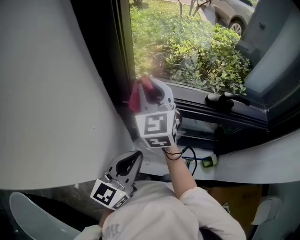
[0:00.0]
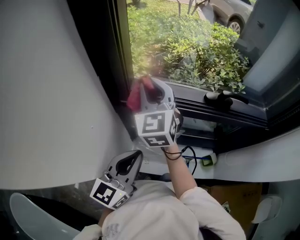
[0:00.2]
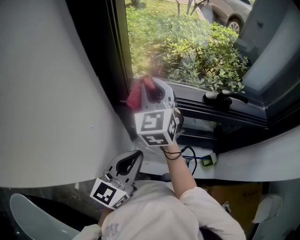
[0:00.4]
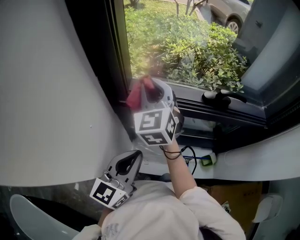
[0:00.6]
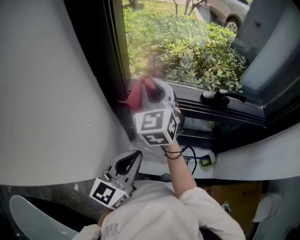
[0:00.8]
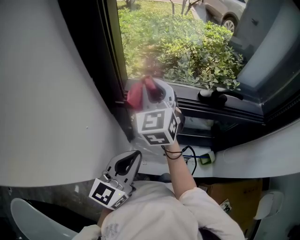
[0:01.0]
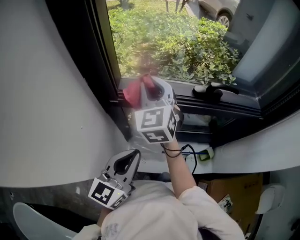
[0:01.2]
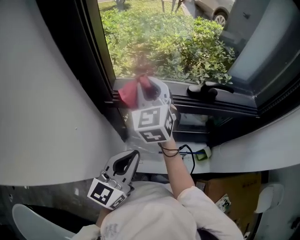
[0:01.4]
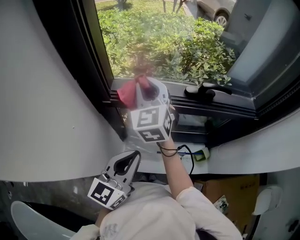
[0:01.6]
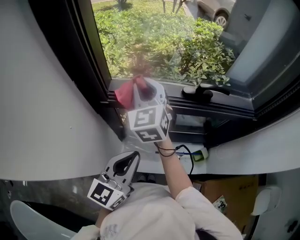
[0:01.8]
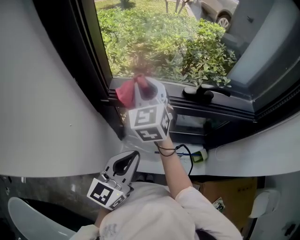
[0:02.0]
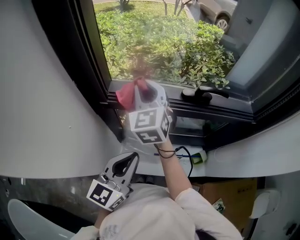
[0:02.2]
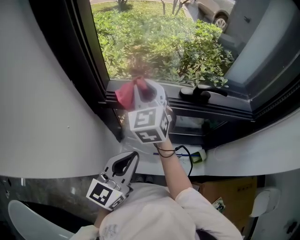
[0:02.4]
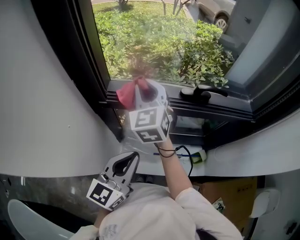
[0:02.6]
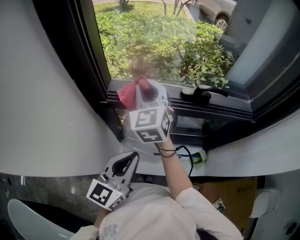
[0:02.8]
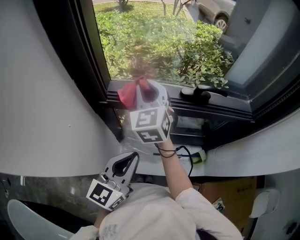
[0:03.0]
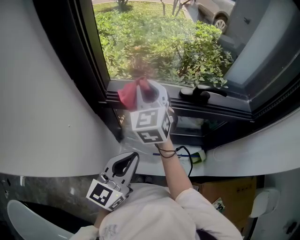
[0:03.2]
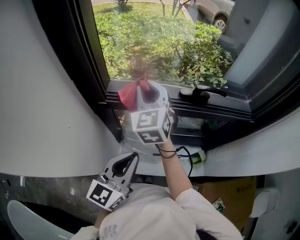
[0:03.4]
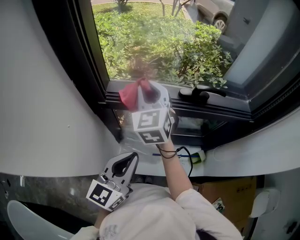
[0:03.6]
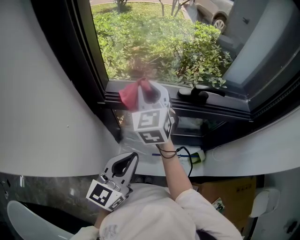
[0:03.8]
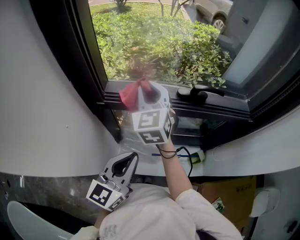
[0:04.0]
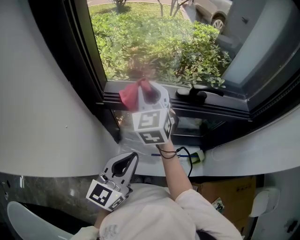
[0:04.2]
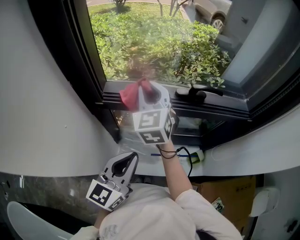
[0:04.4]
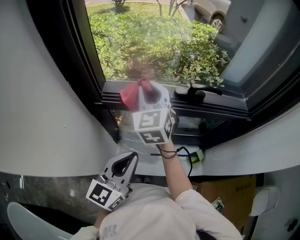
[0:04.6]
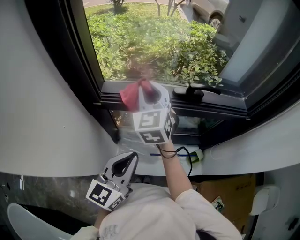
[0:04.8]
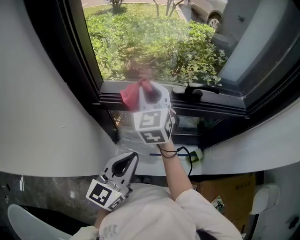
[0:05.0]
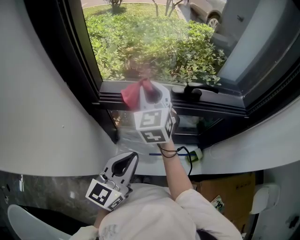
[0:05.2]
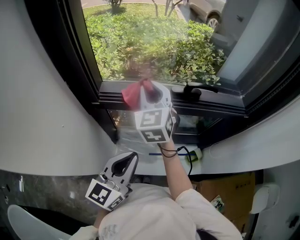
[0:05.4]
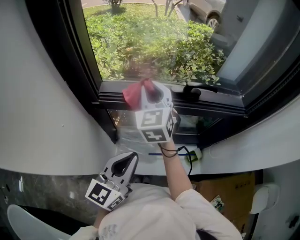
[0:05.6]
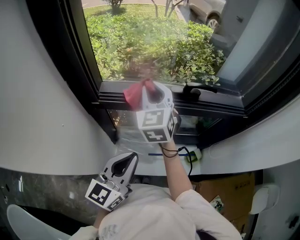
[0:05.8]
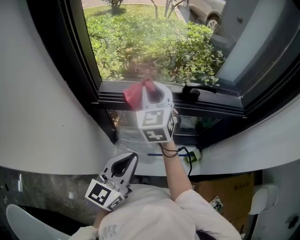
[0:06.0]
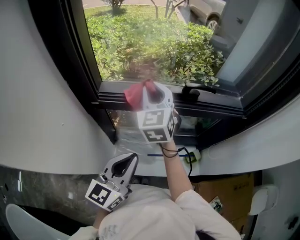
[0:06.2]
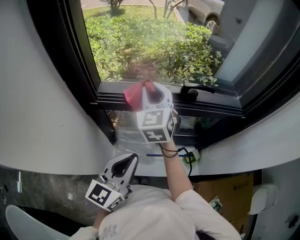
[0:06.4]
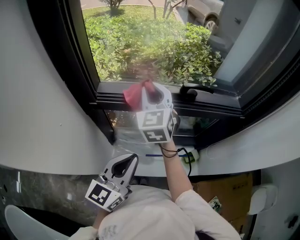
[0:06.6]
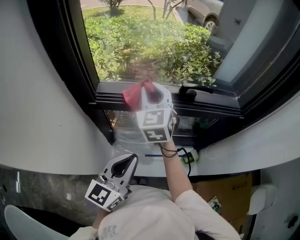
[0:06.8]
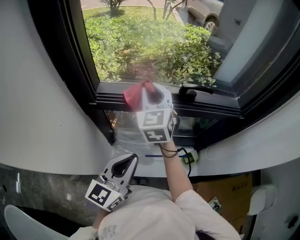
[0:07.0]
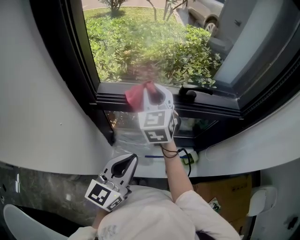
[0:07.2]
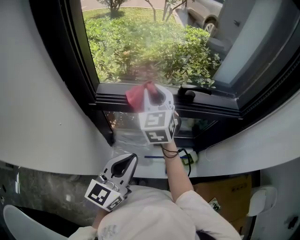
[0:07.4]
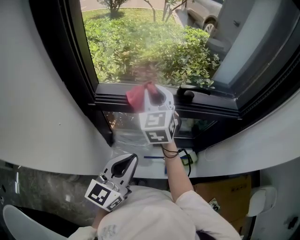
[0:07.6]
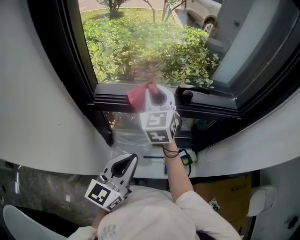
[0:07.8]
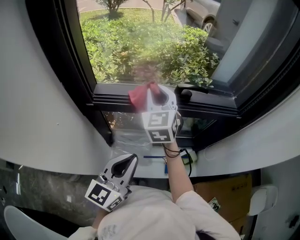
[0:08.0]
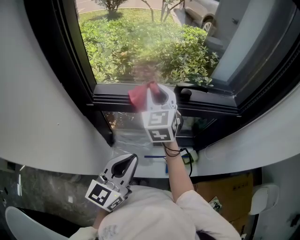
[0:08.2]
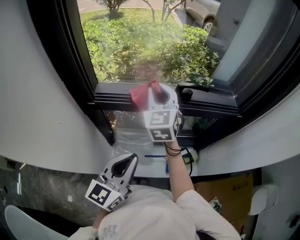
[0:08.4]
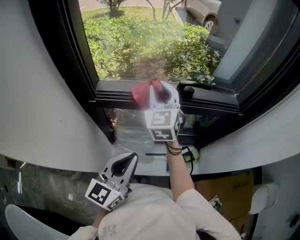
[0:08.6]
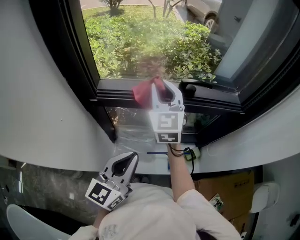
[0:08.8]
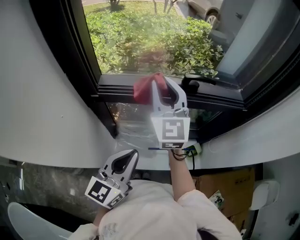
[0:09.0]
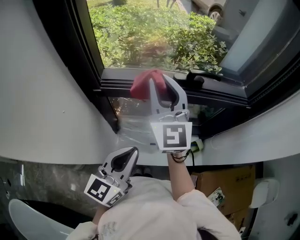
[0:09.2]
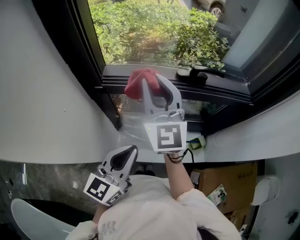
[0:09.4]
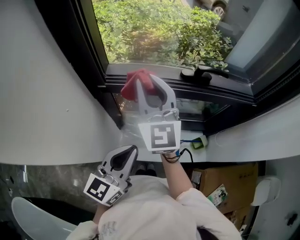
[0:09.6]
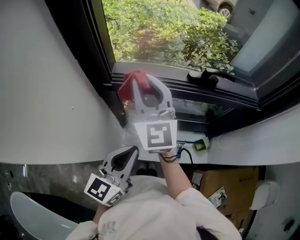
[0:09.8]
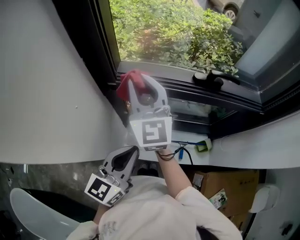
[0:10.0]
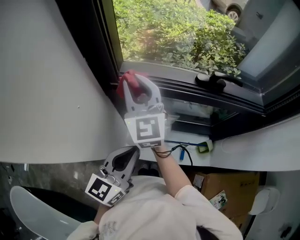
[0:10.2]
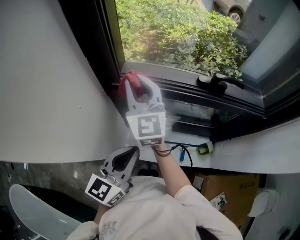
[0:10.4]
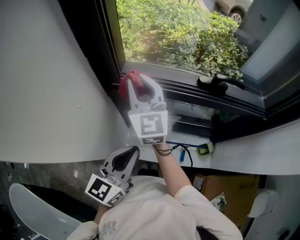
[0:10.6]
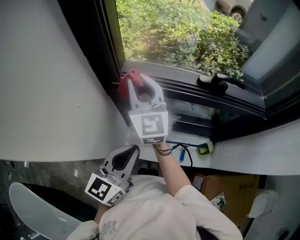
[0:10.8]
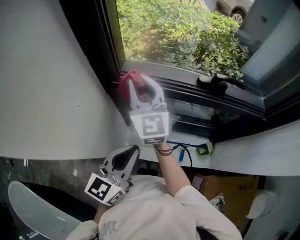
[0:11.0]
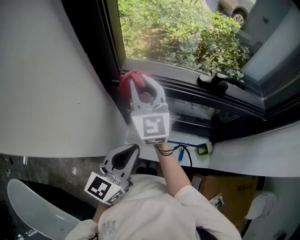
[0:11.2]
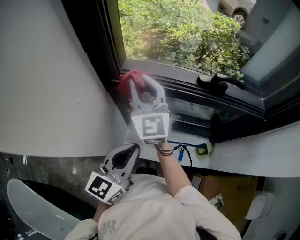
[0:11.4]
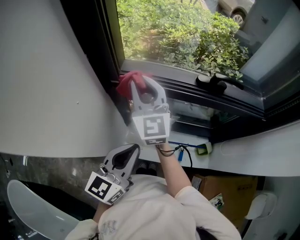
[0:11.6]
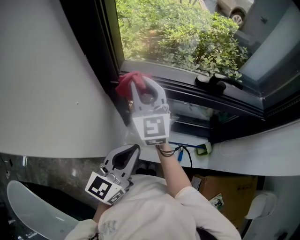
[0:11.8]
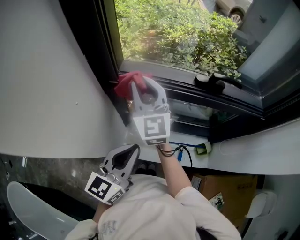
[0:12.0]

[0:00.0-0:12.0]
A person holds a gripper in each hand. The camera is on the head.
0:00.0 to 0:01.6: The two grippers go roughly 5 cm to the right.
0:01.6 to 0:03.0: Both grippers stay put.
0:03.0 to 0:06.0: There are only small adjustments of the grippers.
0:06.0 to 0:07.6: The grippers stay close to where they were, moving slightly.
0:07.6 to 0:09.0: The right gripper moves roughly 5 cm.
0:09.0 to 0:10.4: The right gripper is displaced to the left by approximately 15 cm, while the left gripper heads to the left, covering roughly 5 cm.
0:10.4 to 0:12.0: There are only small adjustments of the grippers.

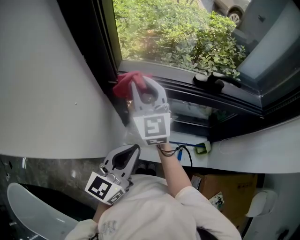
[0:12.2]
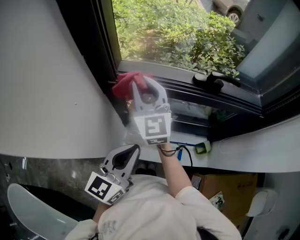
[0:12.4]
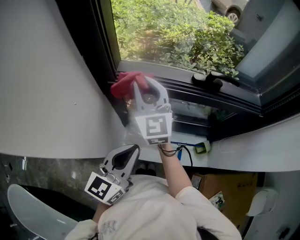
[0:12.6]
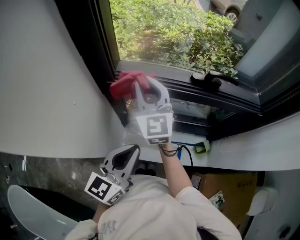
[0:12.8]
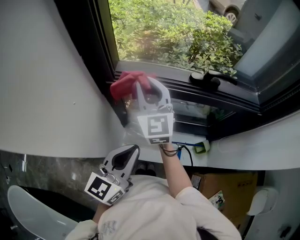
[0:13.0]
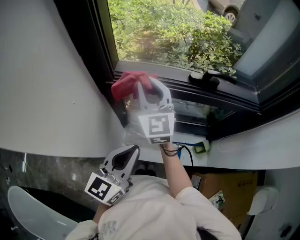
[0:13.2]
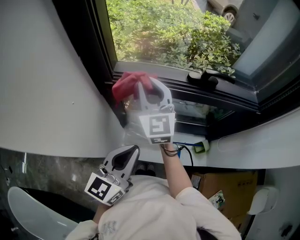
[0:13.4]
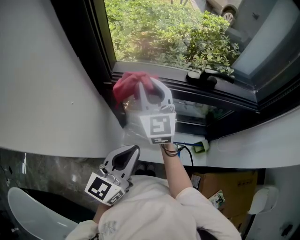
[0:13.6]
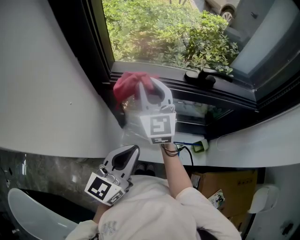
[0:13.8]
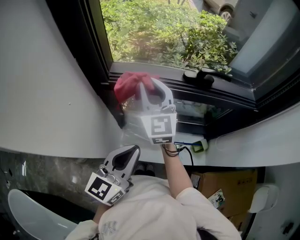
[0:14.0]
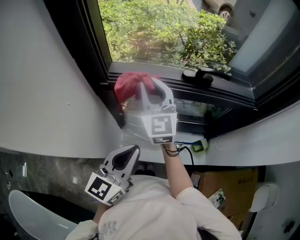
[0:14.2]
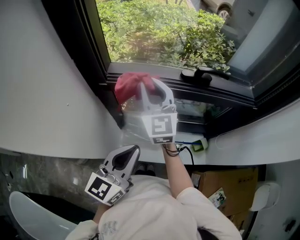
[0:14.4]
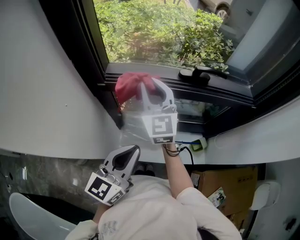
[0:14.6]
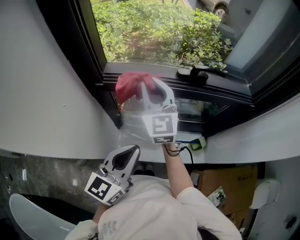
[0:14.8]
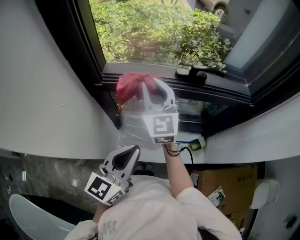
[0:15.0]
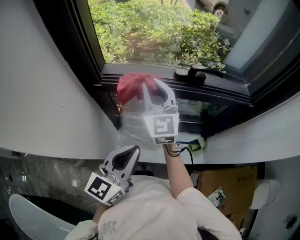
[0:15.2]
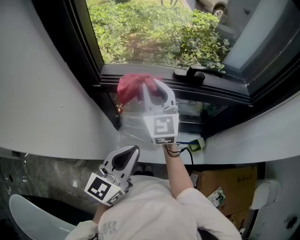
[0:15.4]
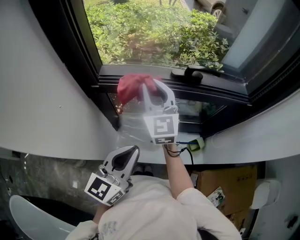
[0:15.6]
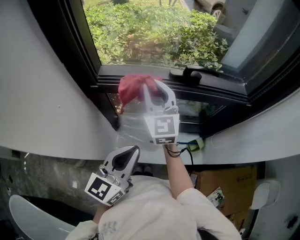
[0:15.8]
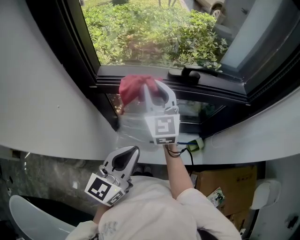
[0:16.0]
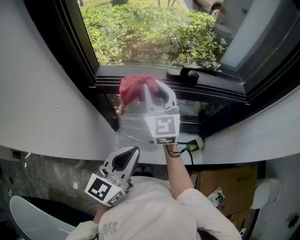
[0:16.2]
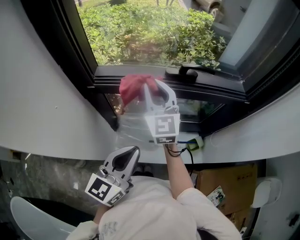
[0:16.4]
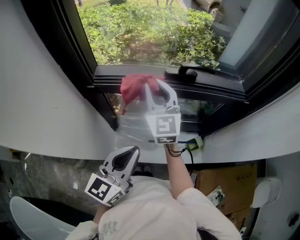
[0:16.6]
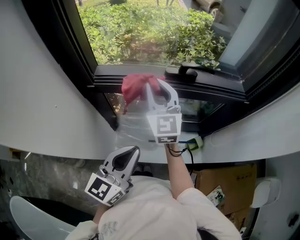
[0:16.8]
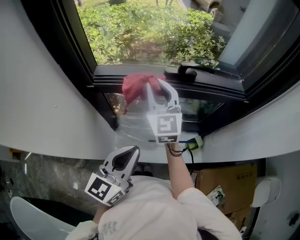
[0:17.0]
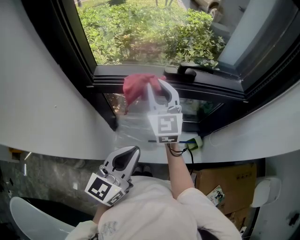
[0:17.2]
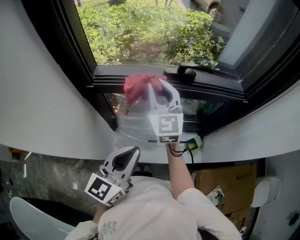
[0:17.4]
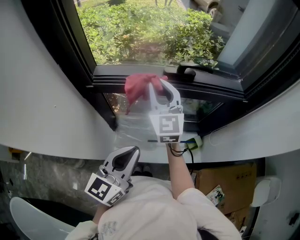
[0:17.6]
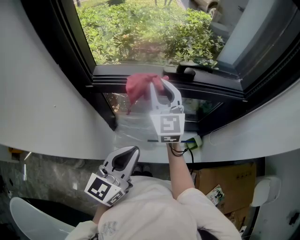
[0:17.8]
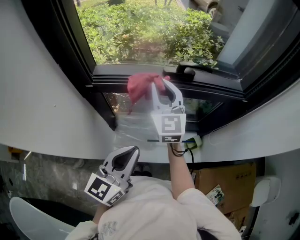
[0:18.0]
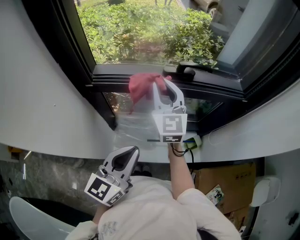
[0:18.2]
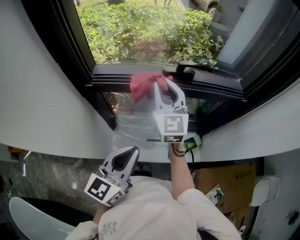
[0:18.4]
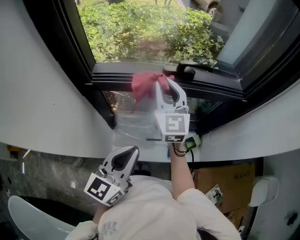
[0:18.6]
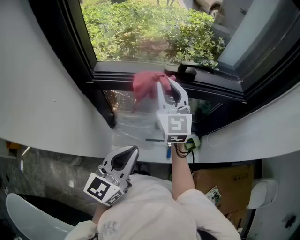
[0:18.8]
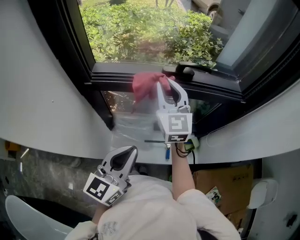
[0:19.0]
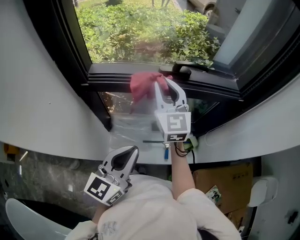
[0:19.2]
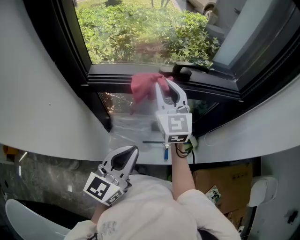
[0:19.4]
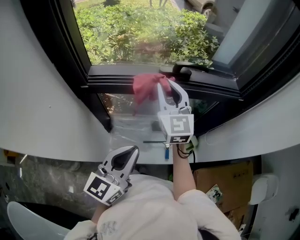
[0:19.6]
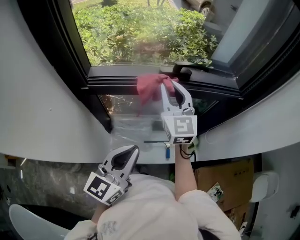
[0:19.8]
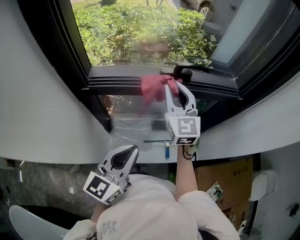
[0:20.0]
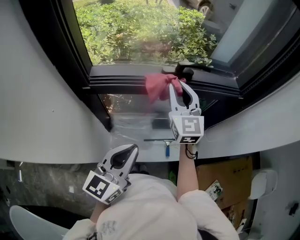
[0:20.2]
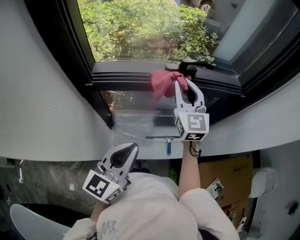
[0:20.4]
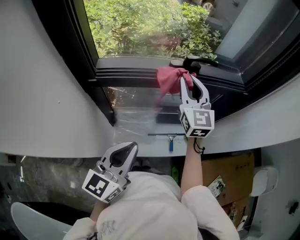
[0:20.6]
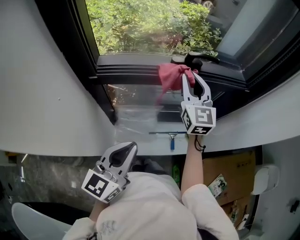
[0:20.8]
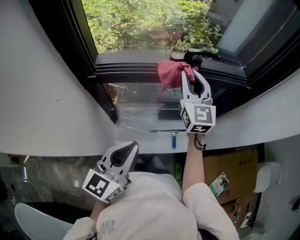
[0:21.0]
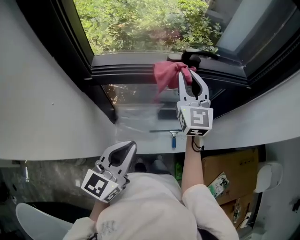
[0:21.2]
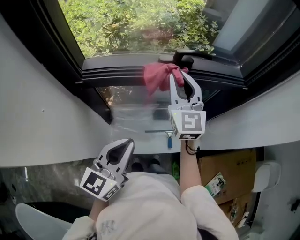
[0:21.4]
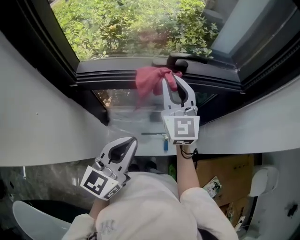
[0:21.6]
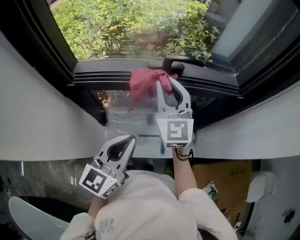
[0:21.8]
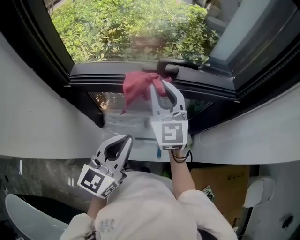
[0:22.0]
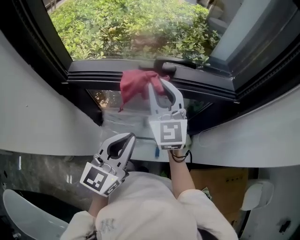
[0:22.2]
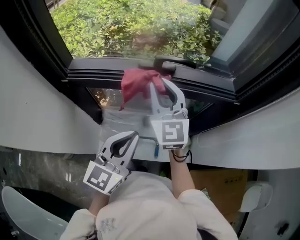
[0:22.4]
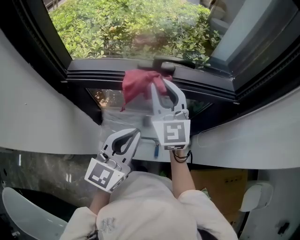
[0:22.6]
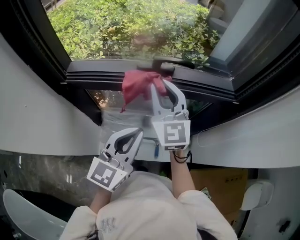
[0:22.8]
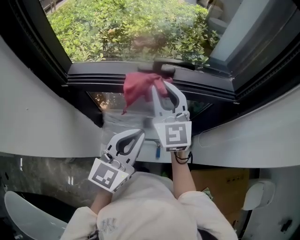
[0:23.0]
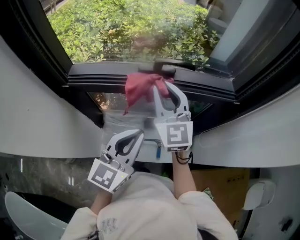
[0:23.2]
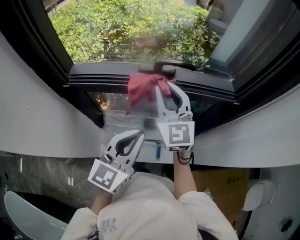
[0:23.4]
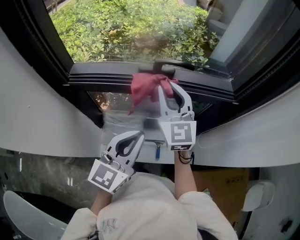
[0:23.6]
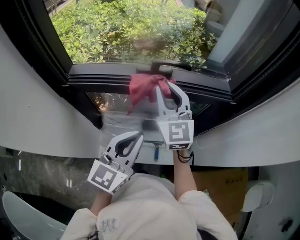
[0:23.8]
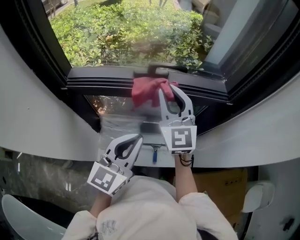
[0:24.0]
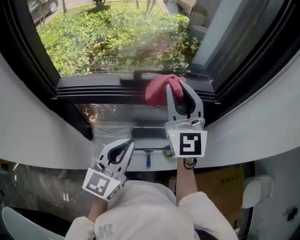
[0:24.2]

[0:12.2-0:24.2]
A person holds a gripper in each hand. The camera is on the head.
0:12.2 to 0:13.8: The right gripper shifts roughly 5 cm to the right.
0:13.8 to 0:15.2: The grippers make only small movements.
0:15.2 to 0:16.6: There are only small adjustments of the grippers.
0:16.6 to 0:18.2: The grippers stay close to where they were, moving slightly.
0:18.2 to 0:19.8: The grippers make only small movements.
0:19.8 to 0:21.2: There are only small adjustments of the grippers.
0:21.2 to 0:22.6: The left gripper goes about 15 cm to the right and forward.
0:22.6 to 0:24.2: The right gripper heads to the right and upward, covering about 15 cm.
